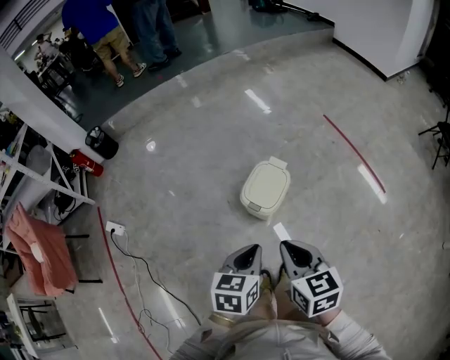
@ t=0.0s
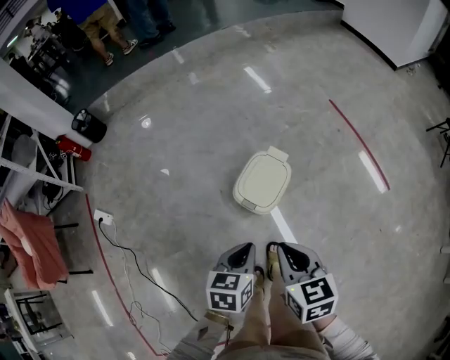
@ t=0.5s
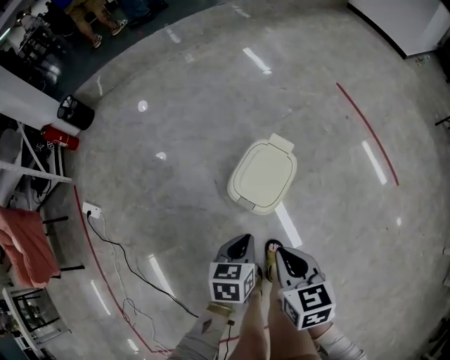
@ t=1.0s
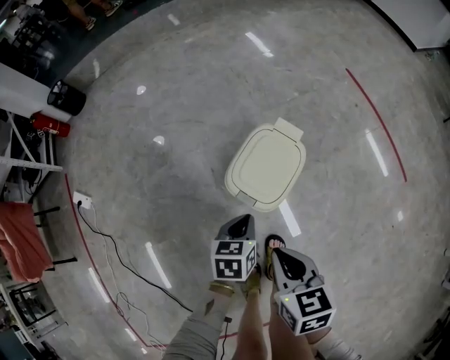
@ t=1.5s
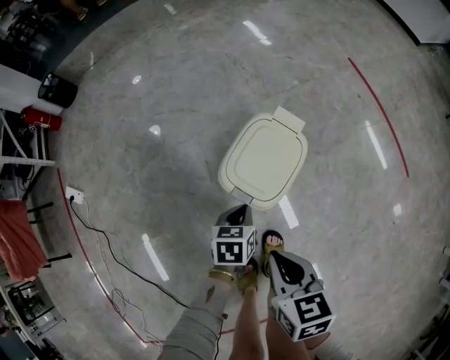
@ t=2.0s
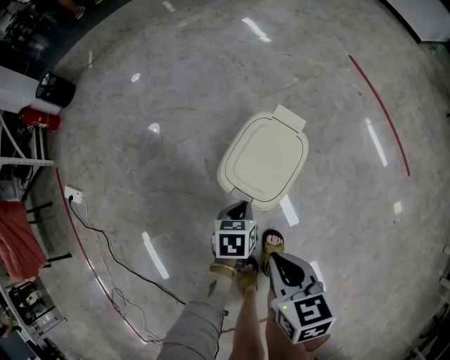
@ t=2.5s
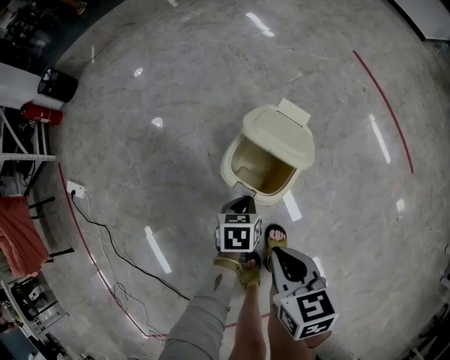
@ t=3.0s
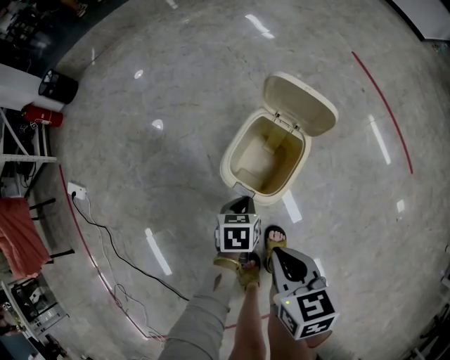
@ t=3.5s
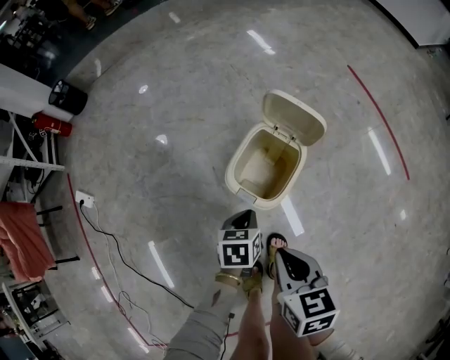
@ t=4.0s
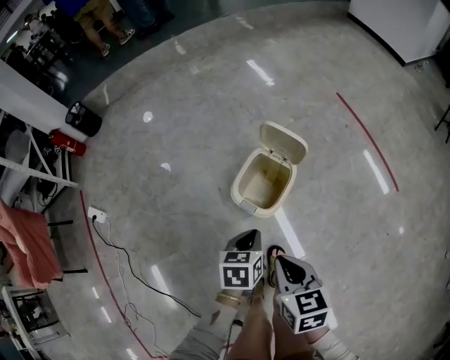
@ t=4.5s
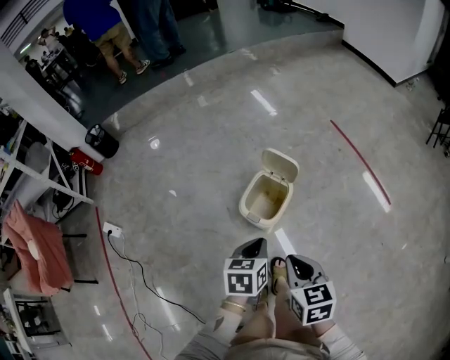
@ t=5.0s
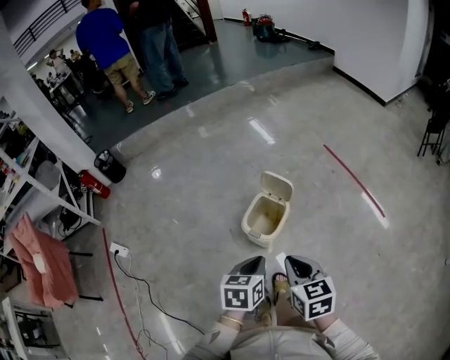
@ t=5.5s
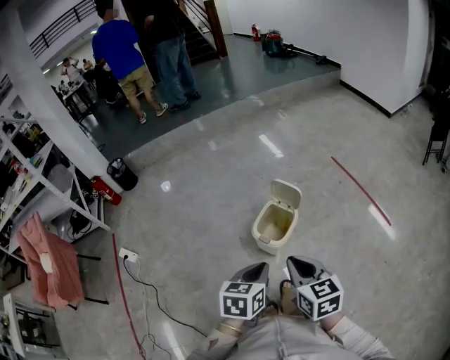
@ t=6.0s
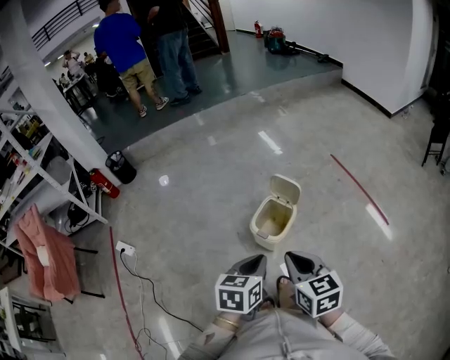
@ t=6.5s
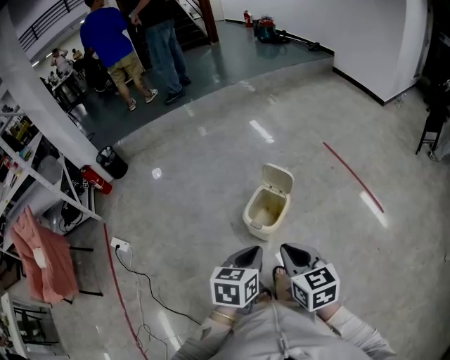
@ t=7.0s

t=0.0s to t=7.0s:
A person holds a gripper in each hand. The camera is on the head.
t=0.0s to t=2.0s: The left gripper travels downward and forward by some 40 cm. The right gripper heads downward, covering about 30 cm.
t=2.0s to t=3.5s: The grippers move only a little.
t=3.5s to t=5.0s: The right gripper is displaced upward by roughly 20 cm, while the left gripper shifts roughly 35 cm upward.
t=5.0s to t=7.0s: The right gripper heads upward, covering some 10 cm. The left gripper shifts roughly 15 cm upward and backward.

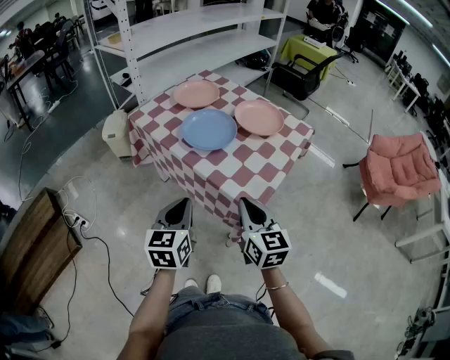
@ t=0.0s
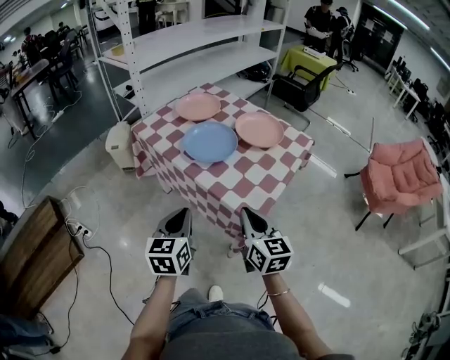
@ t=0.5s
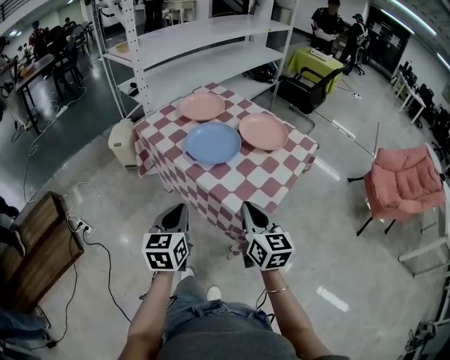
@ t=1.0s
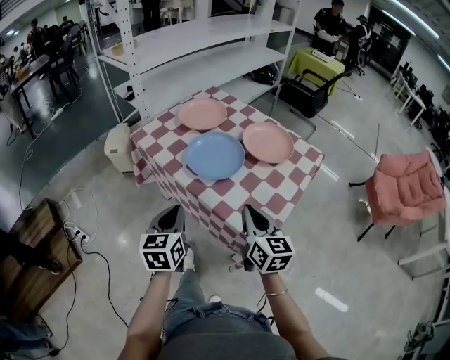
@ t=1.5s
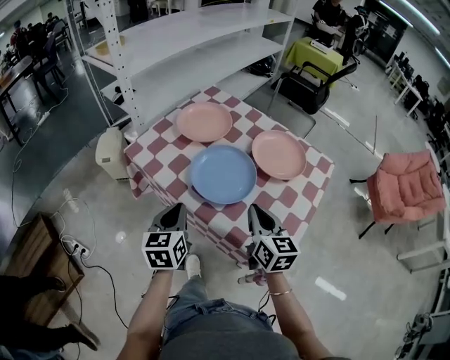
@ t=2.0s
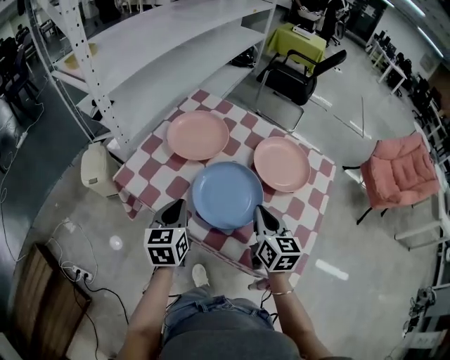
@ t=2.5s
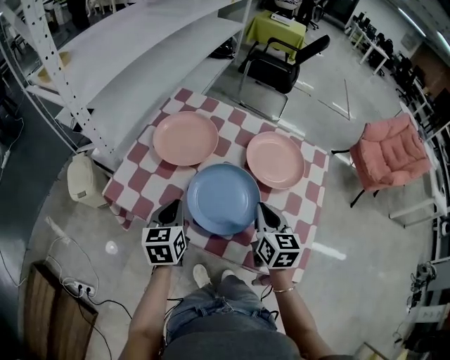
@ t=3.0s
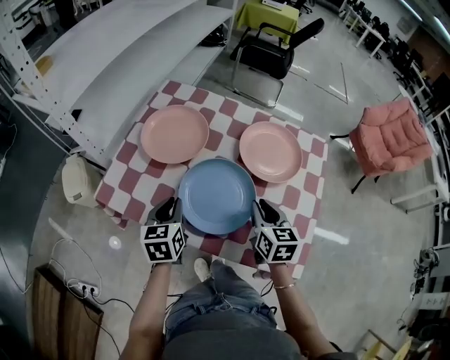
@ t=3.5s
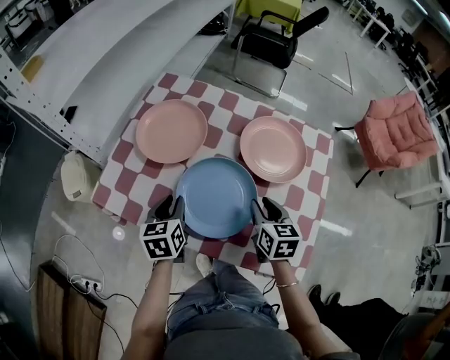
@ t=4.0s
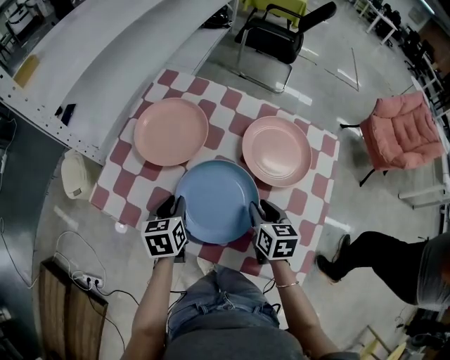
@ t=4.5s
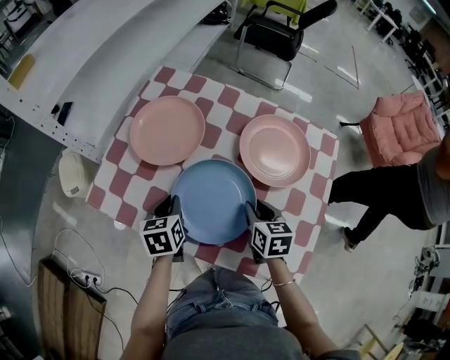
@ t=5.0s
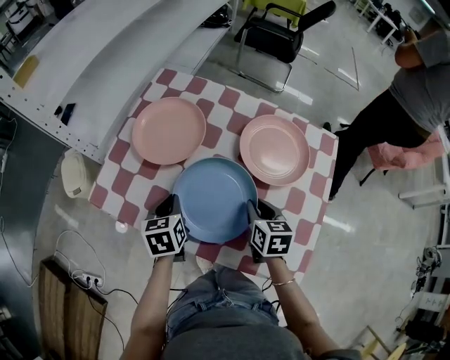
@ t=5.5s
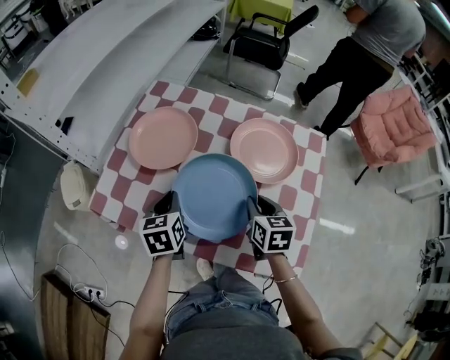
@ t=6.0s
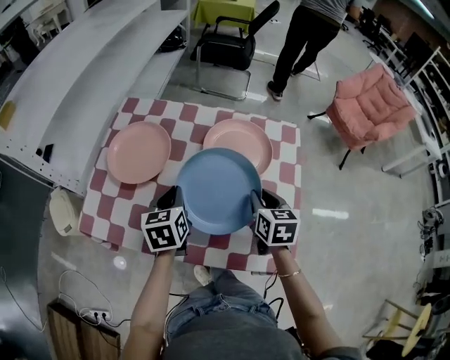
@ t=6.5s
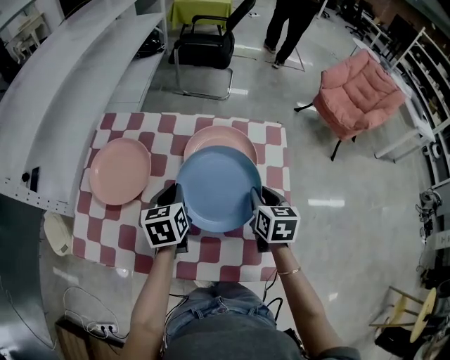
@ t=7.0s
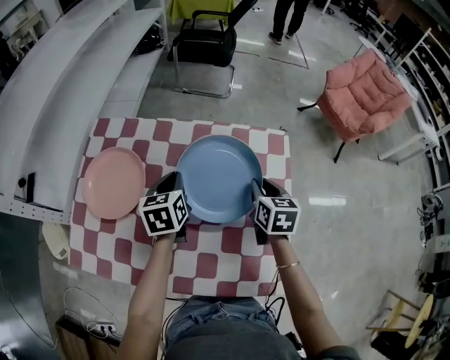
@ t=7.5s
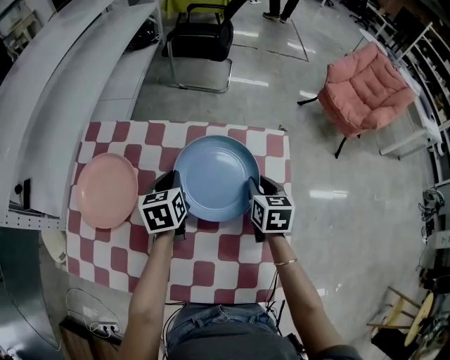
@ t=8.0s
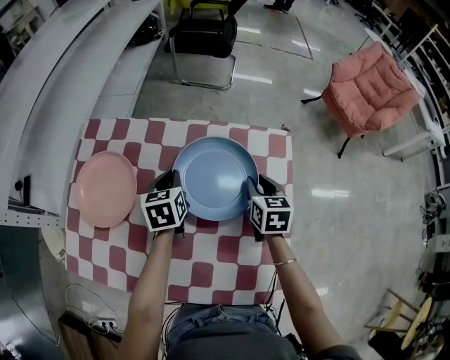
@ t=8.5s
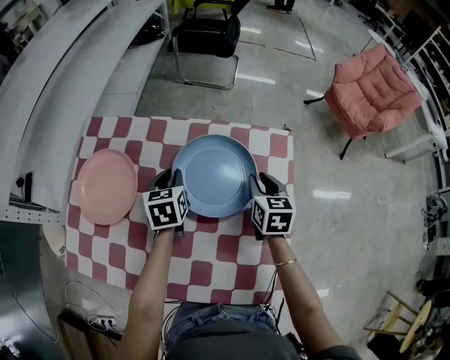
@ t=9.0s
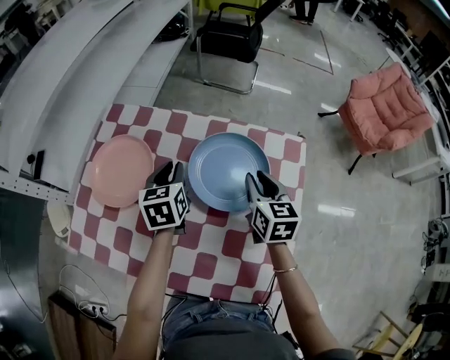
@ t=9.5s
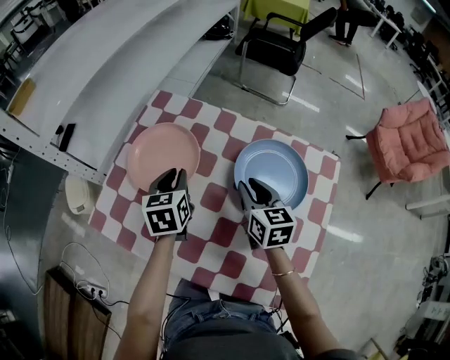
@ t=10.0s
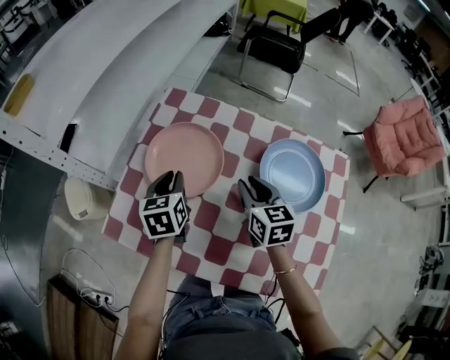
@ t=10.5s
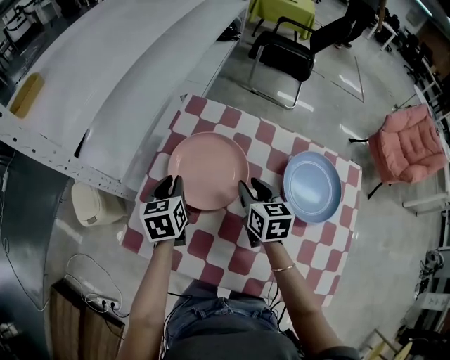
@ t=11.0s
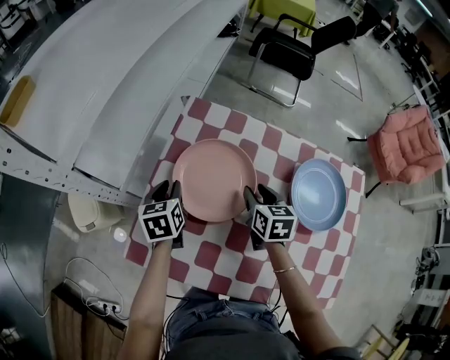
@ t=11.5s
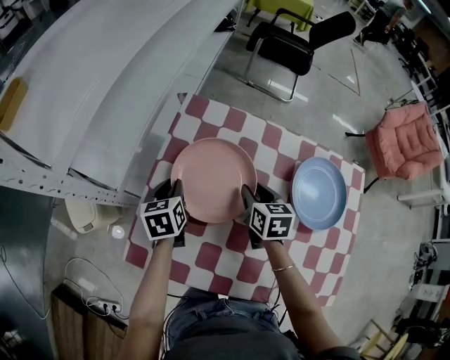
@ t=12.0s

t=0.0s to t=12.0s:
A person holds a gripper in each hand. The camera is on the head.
t=0.0s to t=2.0s: Both grippers move forward, approximately 25 cm.
t=2.0s to t=4.0s: The two grippers go some 20 cm forward and downward. The left gripper opens up; the right gripper swivels about 30 degrees, and opens up.
t=4.0s to t=6.0s: The left gripper closes its fingers.
t=6.0s to t=8.0s: The left gripper heads forward and to the right, covering roughly 30 cm. The right gripper moves to the right and forward, roughly 25 cm.
t=8.0s to t=10.0s: The grippers both shift to the left by approximately 20 cm. The right gripper rotates approximately 30 degrees.
t=10.0s to t=12.0s: The two grippers go roughly 20 cm to the left, forward and downward.

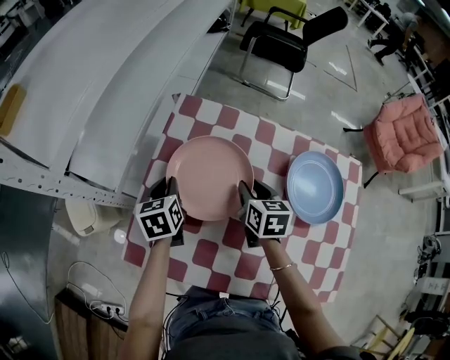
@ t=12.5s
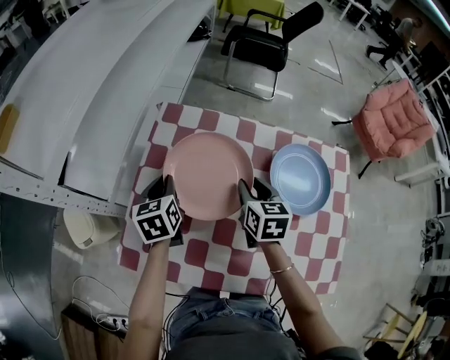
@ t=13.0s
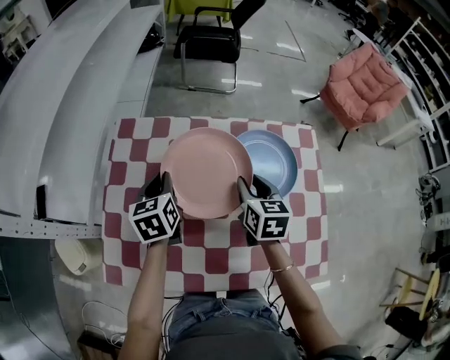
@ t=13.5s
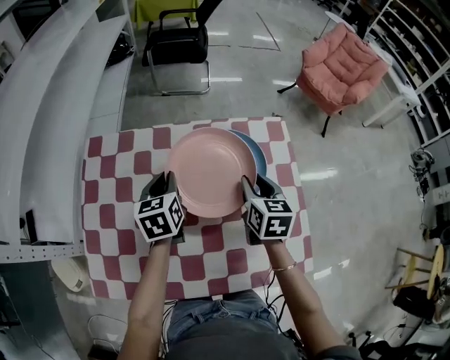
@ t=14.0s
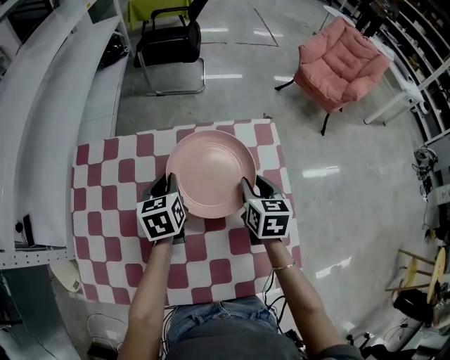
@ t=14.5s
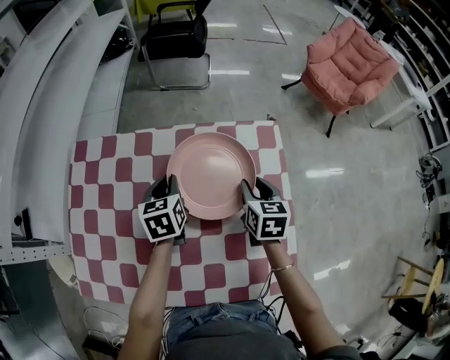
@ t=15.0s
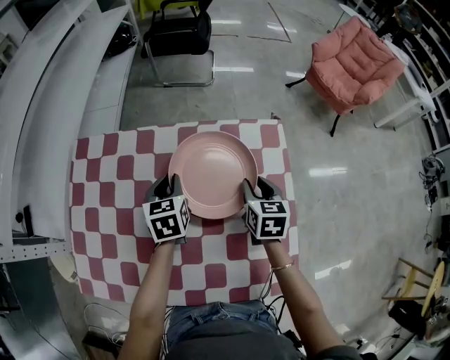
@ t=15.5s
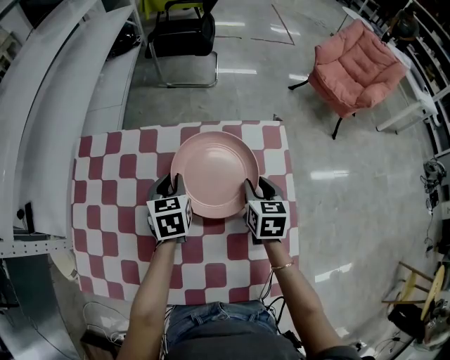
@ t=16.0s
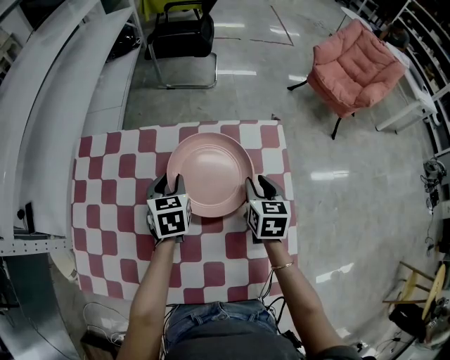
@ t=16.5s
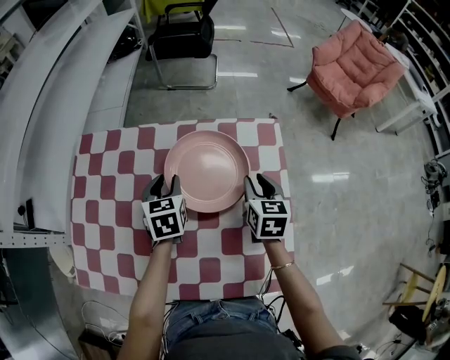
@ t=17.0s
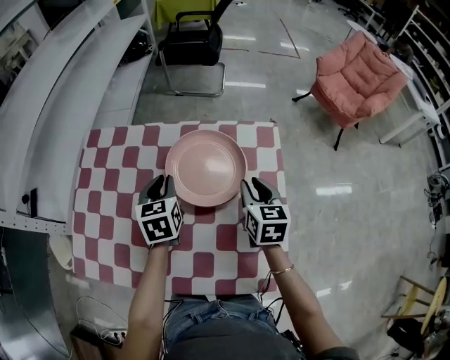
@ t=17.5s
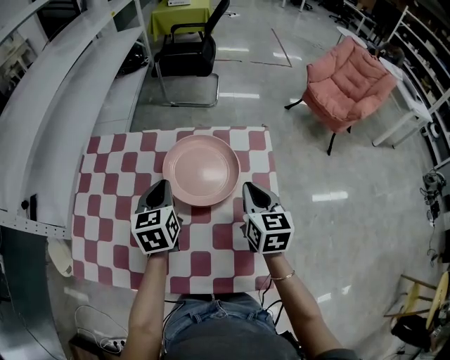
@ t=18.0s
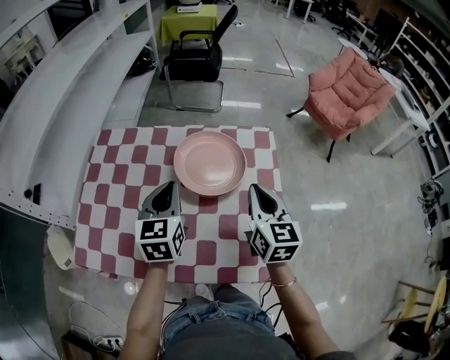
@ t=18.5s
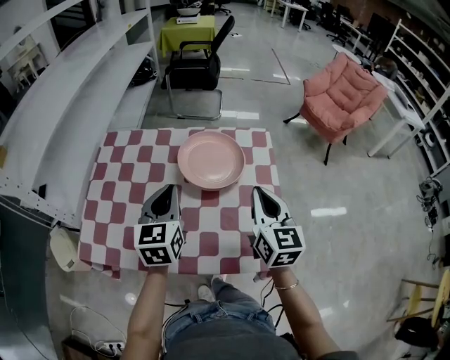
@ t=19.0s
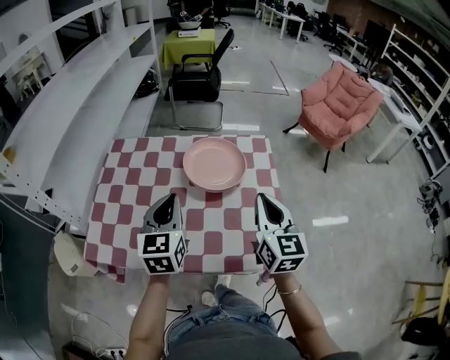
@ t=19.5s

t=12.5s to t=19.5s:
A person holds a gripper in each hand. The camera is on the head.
t=12.5s to t=14.5s: Both grippers move to the right, approximately 35 cm. The left gripper swivels roughly 20 degrees. Meanwhile the right gripper swivels about 20 degrees.
t=14.5s to t=16.0s: There are only small adjustments of the grippers.
t=16.0s to t=17.5s: The right gripper shifts by roughly 5 cm, while the left gripper heads backward, covering approximately 5 cm.
t=17.5s to t=19.5s: Both grippers move backward and upward, approximately 25 cm. The right gripper swivels about 20 degrees, and closes up. The left gripper changes its angle by some 20 degrees.

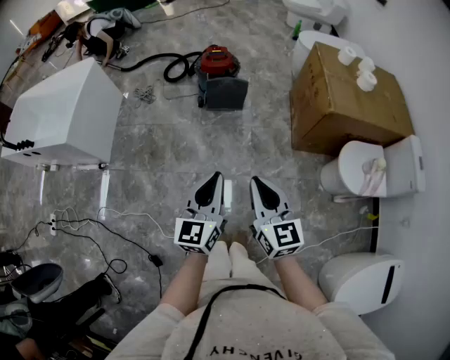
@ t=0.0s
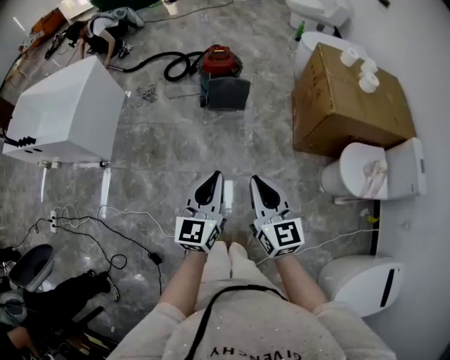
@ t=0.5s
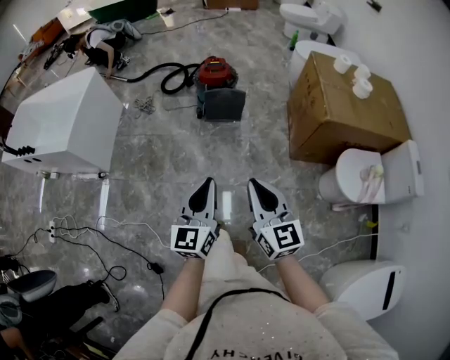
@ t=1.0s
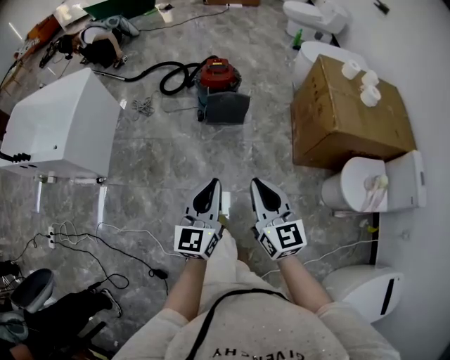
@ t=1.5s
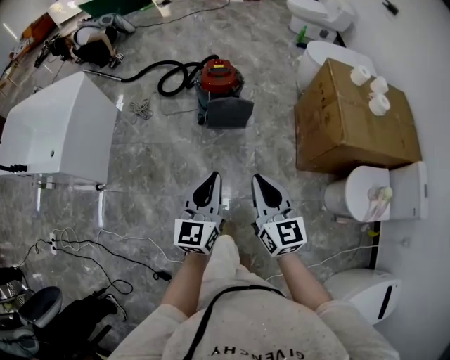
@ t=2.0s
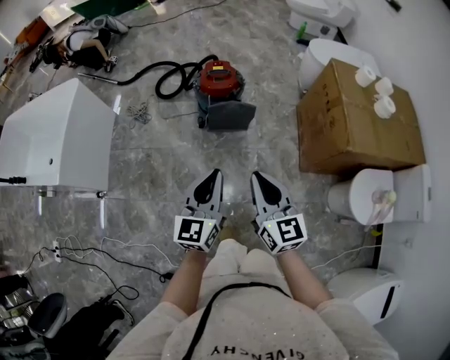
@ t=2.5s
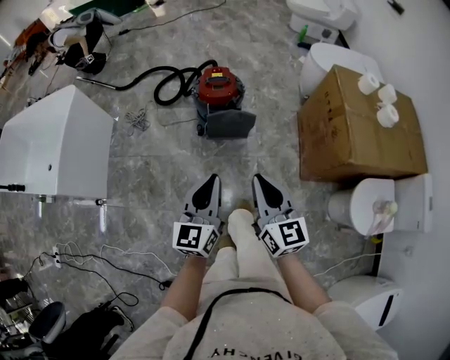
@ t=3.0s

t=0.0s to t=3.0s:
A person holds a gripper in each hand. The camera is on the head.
t=0.0s to t=1.5s: Both grippers move forward, about 10 cm.
t=1.5s to t=3.0s: The two grippers go roughly 20 cm forward.